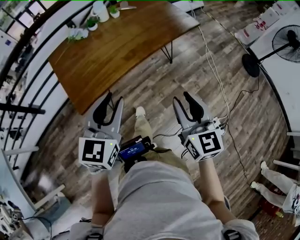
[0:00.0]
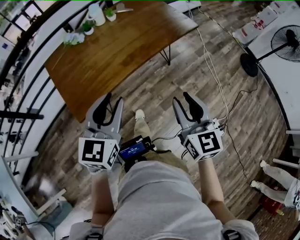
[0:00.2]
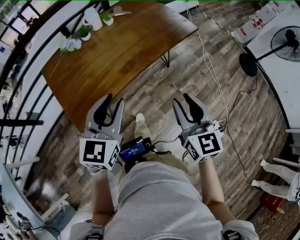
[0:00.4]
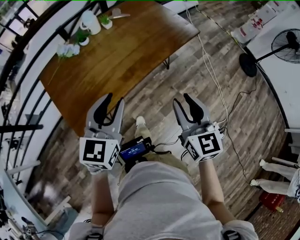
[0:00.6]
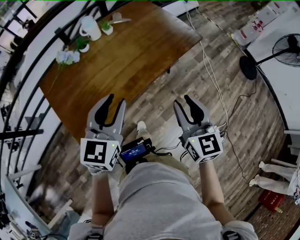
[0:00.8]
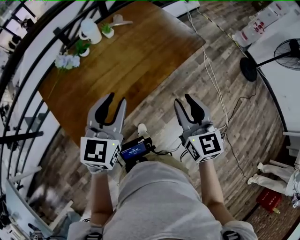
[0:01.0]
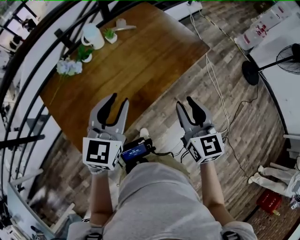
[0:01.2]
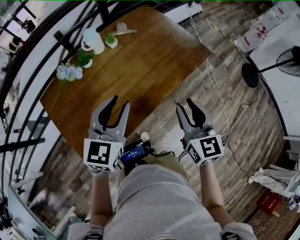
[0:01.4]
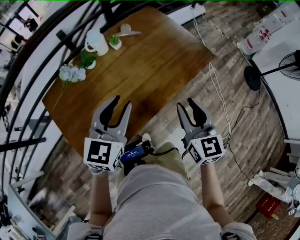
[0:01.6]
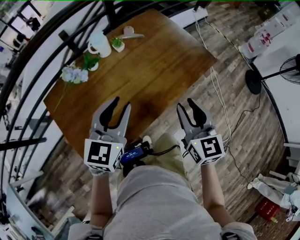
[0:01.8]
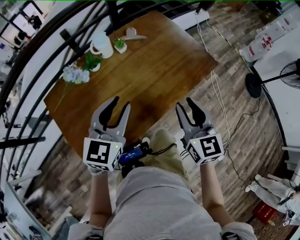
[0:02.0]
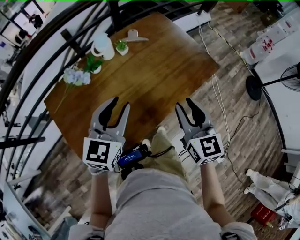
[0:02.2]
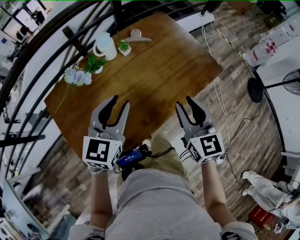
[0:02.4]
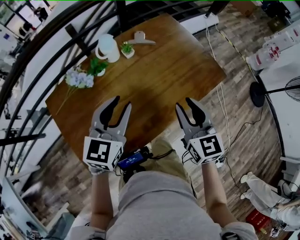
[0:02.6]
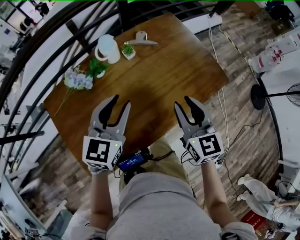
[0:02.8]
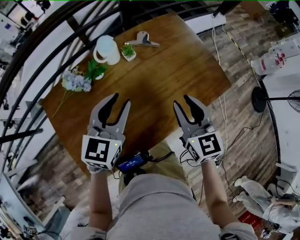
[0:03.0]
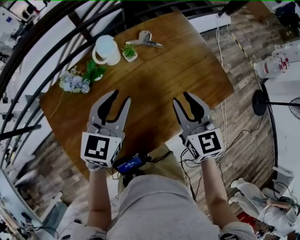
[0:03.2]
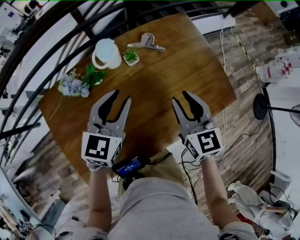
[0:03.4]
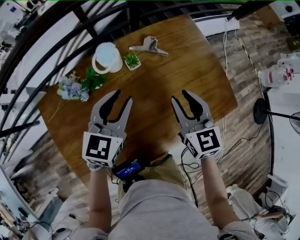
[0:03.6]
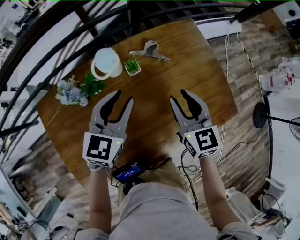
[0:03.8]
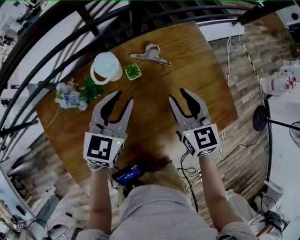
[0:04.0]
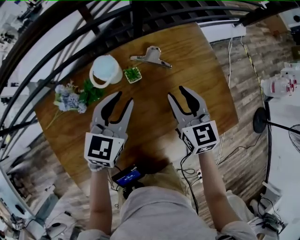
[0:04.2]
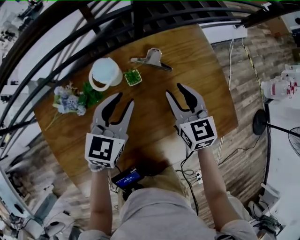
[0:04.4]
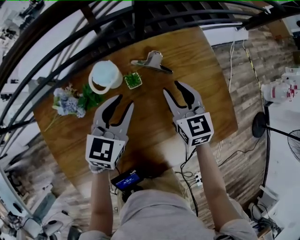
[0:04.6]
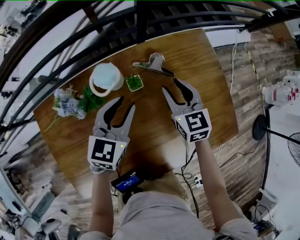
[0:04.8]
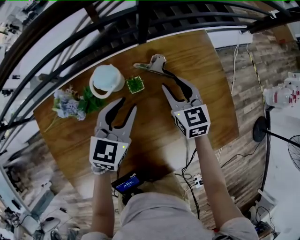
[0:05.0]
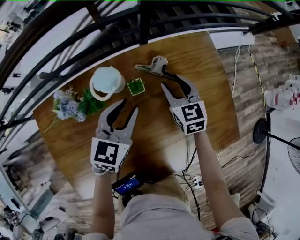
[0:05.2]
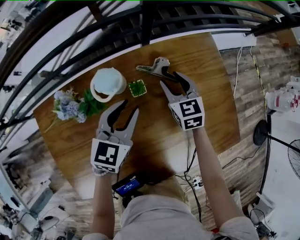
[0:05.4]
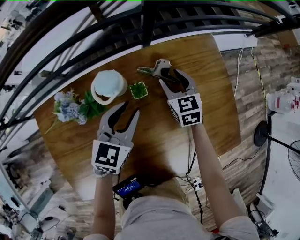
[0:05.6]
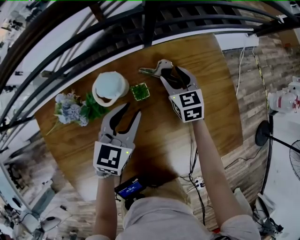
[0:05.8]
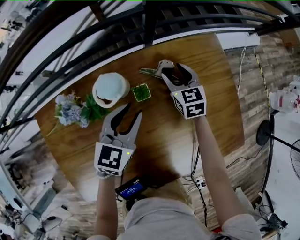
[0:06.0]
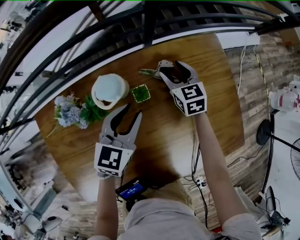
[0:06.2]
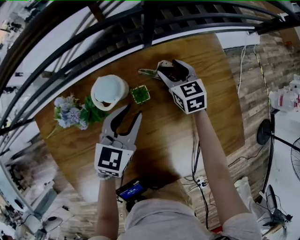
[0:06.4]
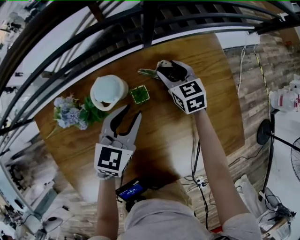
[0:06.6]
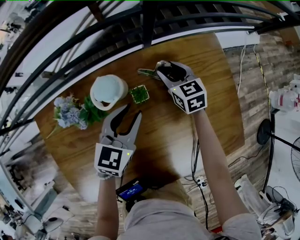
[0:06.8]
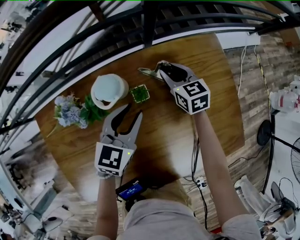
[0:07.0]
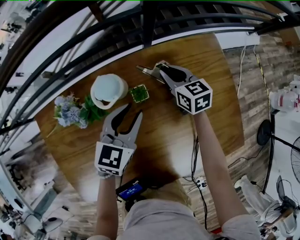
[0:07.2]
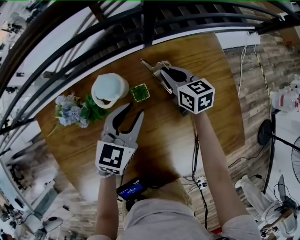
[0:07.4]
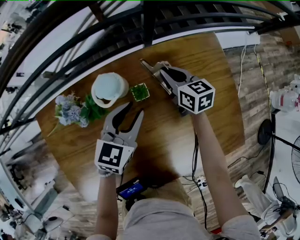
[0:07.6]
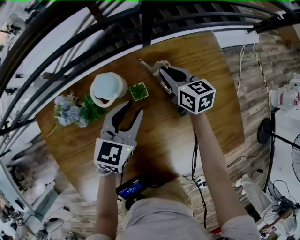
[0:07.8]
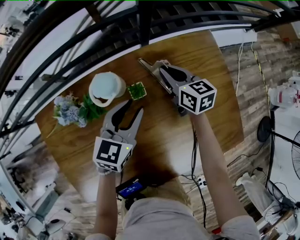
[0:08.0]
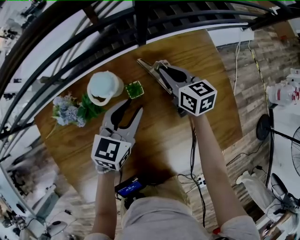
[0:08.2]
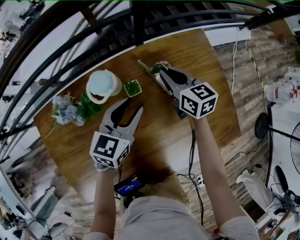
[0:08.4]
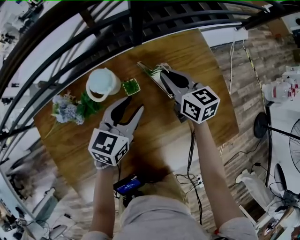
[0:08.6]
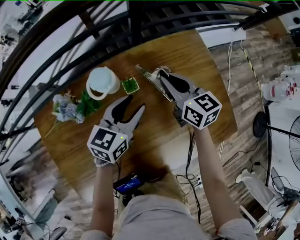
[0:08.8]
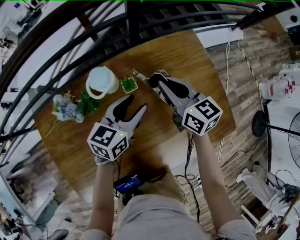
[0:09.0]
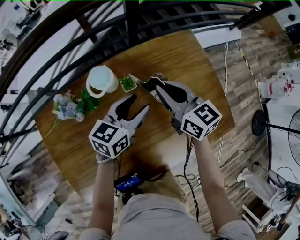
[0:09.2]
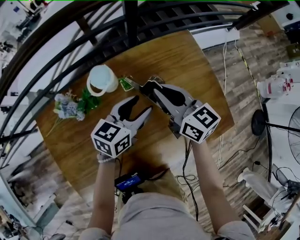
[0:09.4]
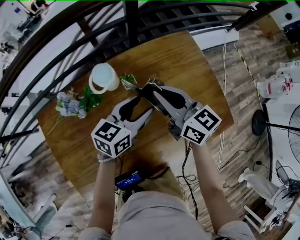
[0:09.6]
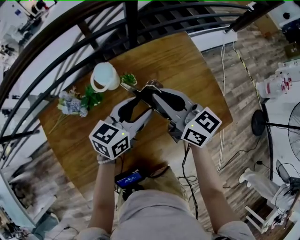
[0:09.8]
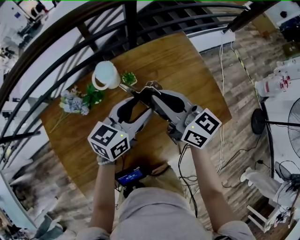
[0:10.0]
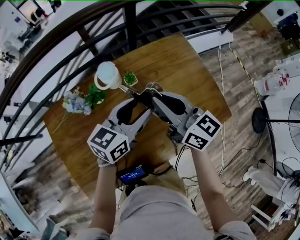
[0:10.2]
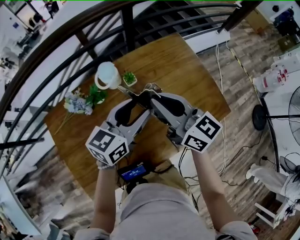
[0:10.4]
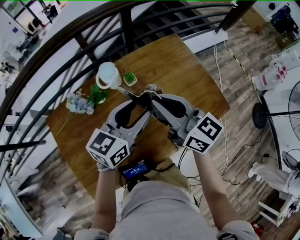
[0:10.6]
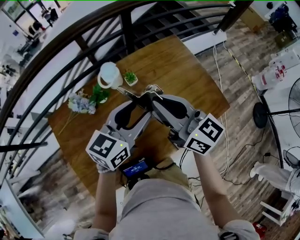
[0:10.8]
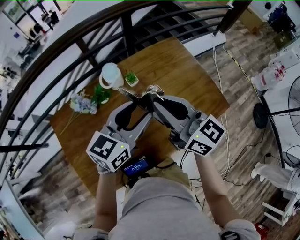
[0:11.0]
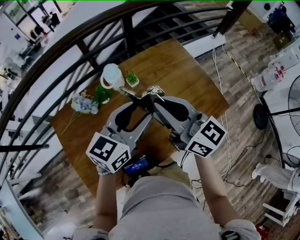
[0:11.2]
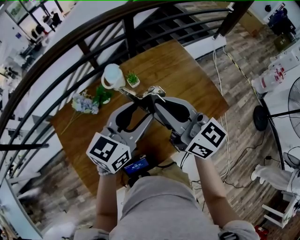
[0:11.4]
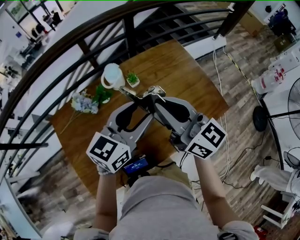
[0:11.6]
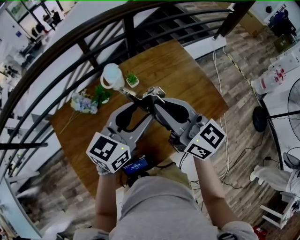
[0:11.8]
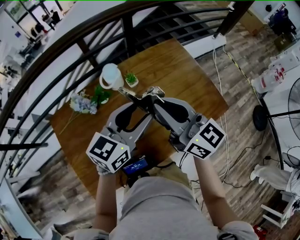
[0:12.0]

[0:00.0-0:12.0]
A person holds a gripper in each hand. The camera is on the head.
0:00.0 to 0:01.6: Both grippers move forward, approximately 30 cm.
0:01.6 to 0:03.0: The grippers both shift forward by approximately 15 cm.
0:03.0 to 0:04.4: The left gripper heads forward and downward, covering approximately 15 cm; the right gripper shifts some 20 cm forward.
0:04.4 to 0:06.0: The right gripper is displaced forward and downward by roughly 20 cm, and opens up.
0:06.0 to 0:07.6: The right gripper turns by some 20 degrees, and closes its fingers.
0:07.6 to 0:09.0: The right gripper goes about 15 cm upward and backward.
0:09.0 to 0:10.4: The two grippers go roughly 15 cm backward and upward.
0:10.4 to 0:12.0: Both grippers travel together backward, some 5 cm.

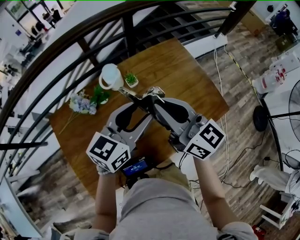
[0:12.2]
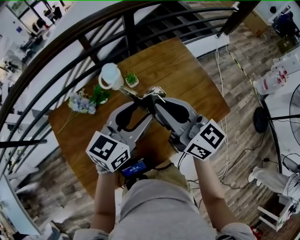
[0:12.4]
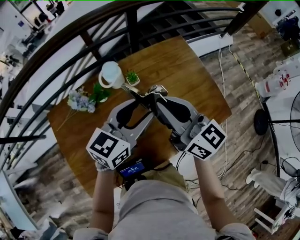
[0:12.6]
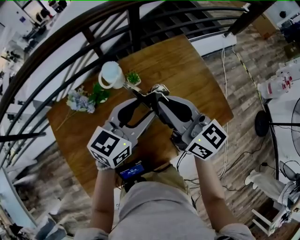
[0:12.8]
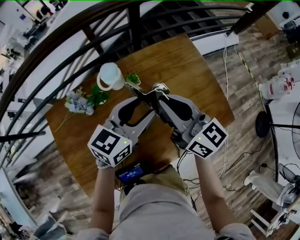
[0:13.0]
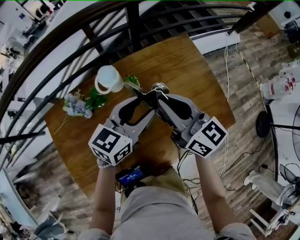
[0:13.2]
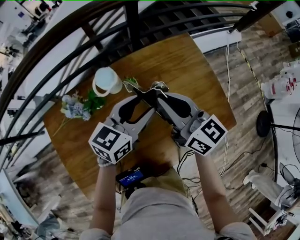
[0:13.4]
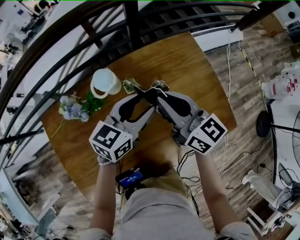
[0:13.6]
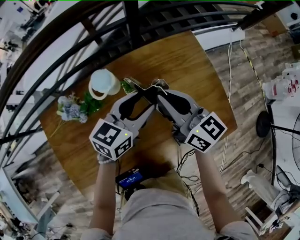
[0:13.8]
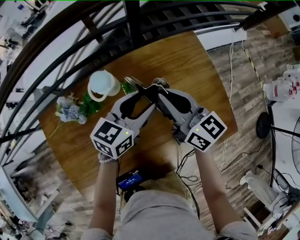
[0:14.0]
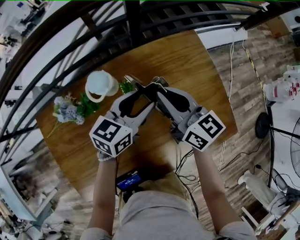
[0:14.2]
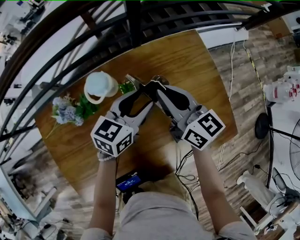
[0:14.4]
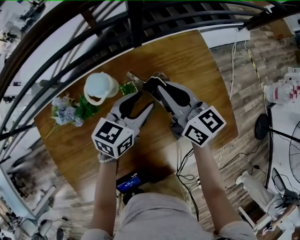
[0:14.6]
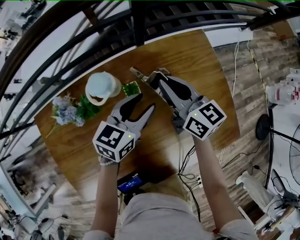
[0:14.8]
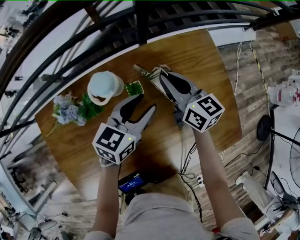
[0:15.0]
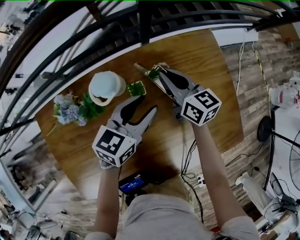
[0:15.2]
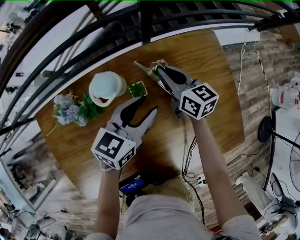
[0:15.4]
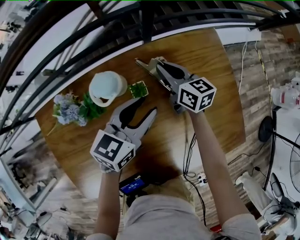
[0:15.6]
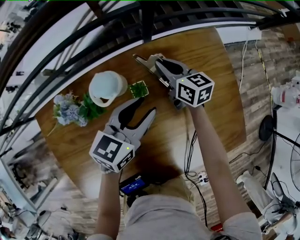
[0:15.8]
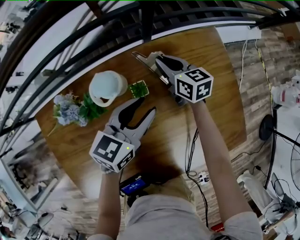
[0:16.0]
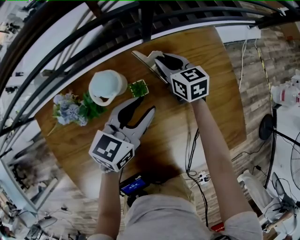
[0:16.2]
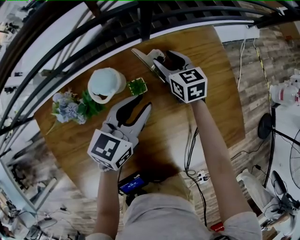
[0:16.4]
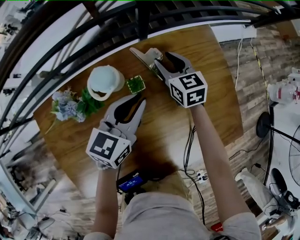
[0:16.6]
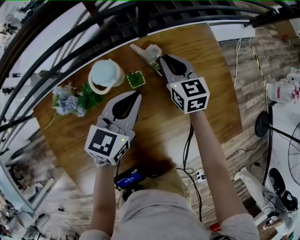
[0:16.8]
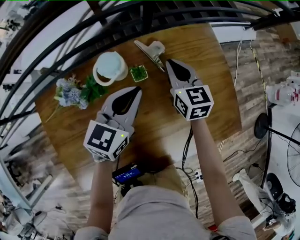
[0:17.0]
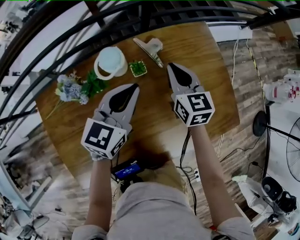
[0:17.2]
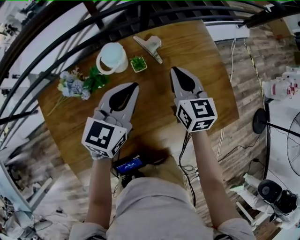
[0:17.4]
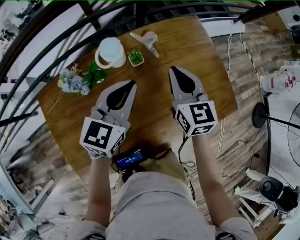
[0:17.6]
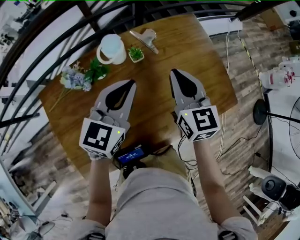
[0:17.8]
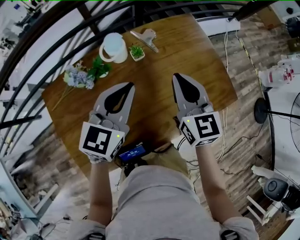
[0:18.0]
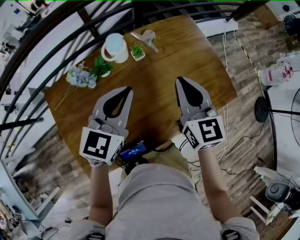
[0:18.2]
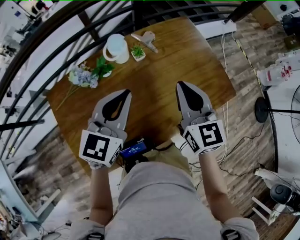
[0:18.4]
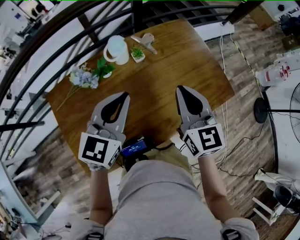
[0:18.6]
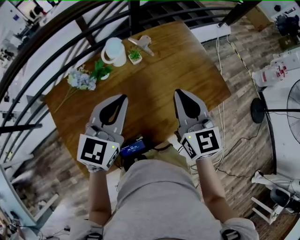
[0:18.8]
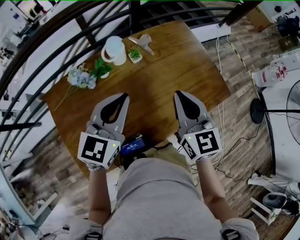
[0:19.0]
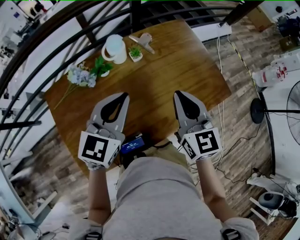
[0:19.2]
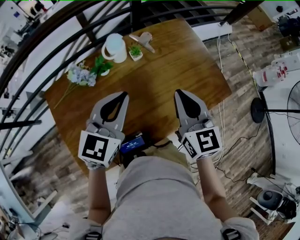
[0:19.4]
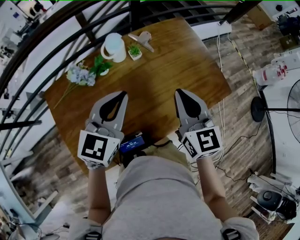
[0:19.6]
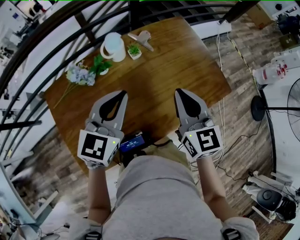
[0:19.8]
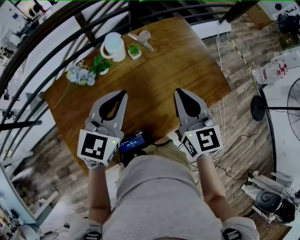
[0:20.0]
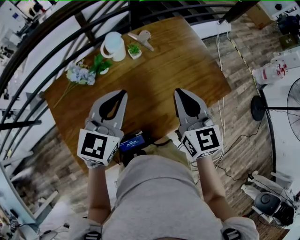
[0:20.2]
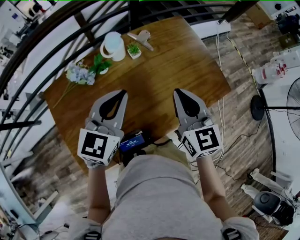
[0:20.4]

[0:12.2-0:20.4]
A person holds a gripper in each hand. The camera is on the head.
0:12.2 to 0:13.8: The grippers both shift forward and downward by approximately 15 cm.
0:13.8 to 0:15.4: The right gripper travels forward and downward by about 20 cm.
0:15.4 to 0:17.2: The left gripper moves roughly 5 cm, and closes its fingers. Meanwhile the right gripper travels backward by some 10 cm, changes its angle by roughly 20 degrees, and opens, then closes once more.
0:17.2 to 0:18.8: Both grippers move backward and upward, roughly 20 cm.
0:18.8 to 0:20.4: The grippers stay close to where they were, moving slightly.

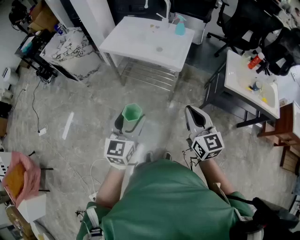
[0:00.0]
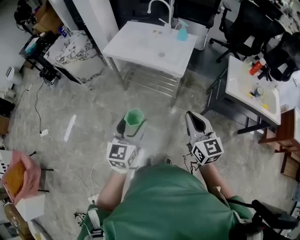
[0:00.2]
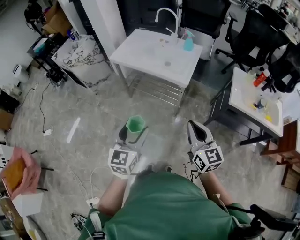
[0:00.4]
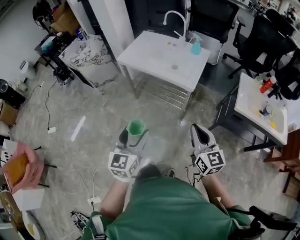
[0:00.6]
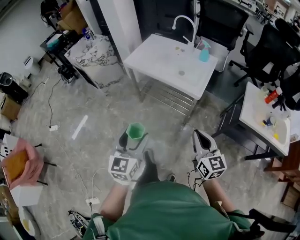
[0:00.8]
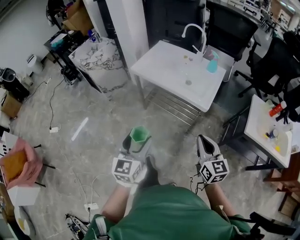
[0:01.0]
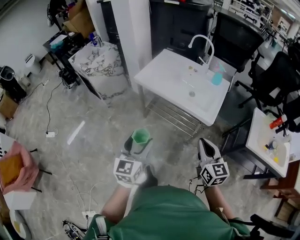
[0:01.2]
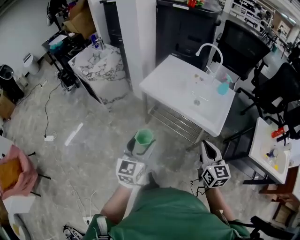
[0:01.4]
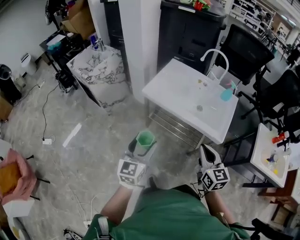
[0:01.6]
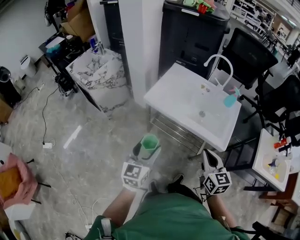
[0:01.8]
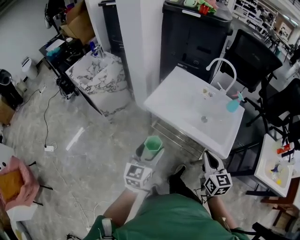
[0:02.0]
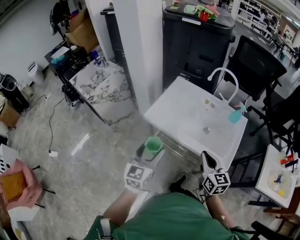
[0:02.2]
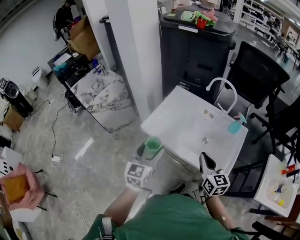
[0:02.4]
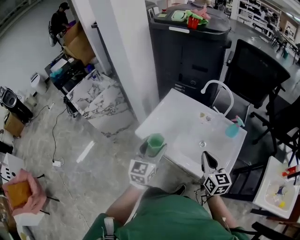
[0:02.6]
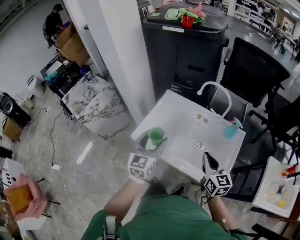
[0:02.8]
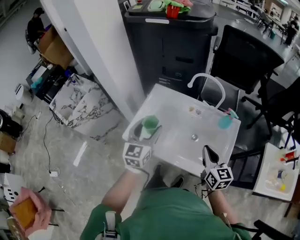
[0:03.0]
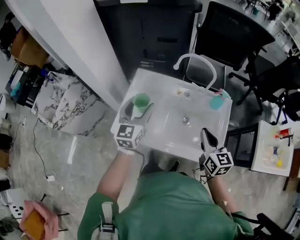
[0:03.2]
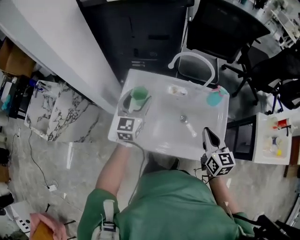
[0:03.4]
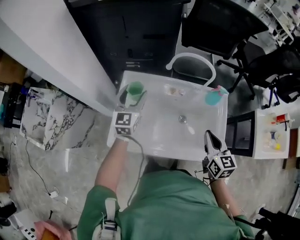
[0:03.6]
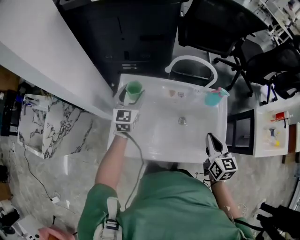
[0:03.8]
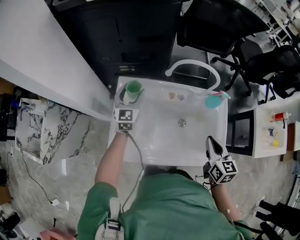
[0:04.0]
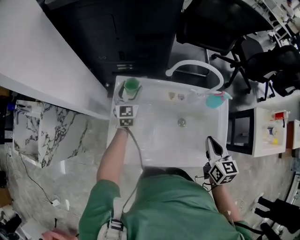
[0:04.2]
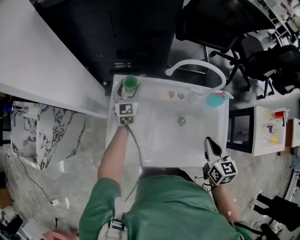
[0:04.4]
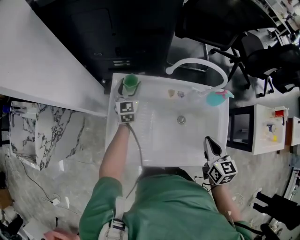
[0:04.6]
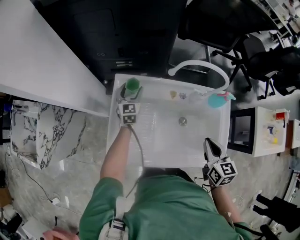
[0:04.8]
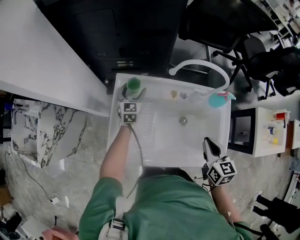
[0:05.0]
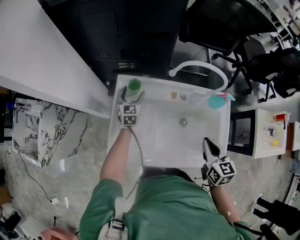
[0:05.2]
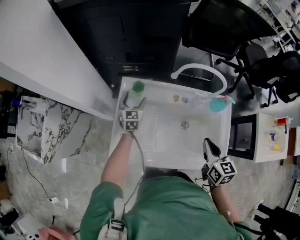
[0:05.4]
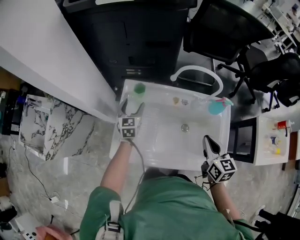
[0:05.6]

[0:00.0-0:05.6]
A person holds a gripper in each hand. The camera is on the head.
0:00.0 to 0:01.4: Both grippers travel together forward and to the left, about 30 cm.
0:01.4 to 0:02.8: The grippers both shift forward by approximately 40 cm.
0:02.8 to 0:04.2: The right gripper travels forward and downward by some 15 cm, and rotates approximately 30 degrees. Meanwhile the left gripper is displaced forward and downward by roughly 40 cm.
0:04.2 to 0:05.6: The left gripper heads backward, covering approximately 5 cm.
